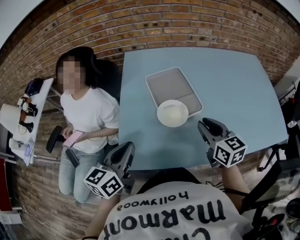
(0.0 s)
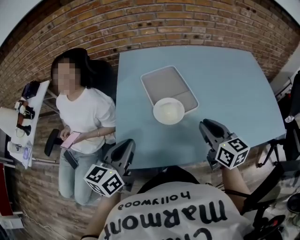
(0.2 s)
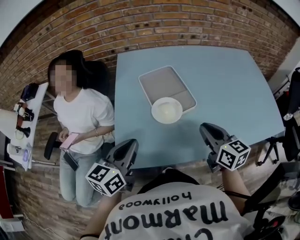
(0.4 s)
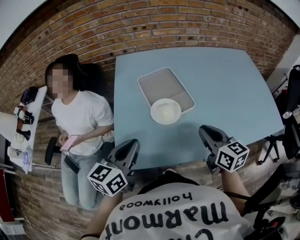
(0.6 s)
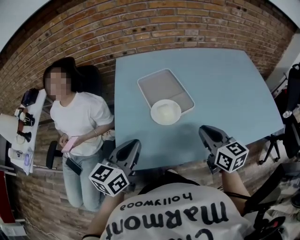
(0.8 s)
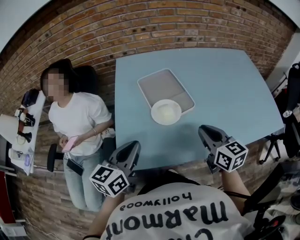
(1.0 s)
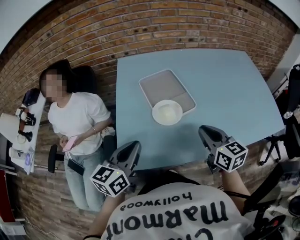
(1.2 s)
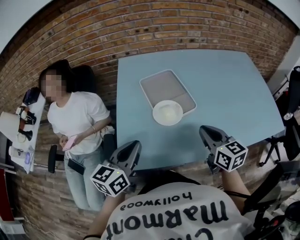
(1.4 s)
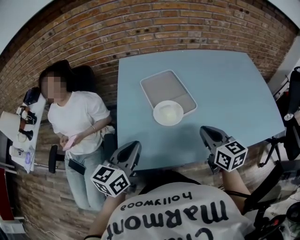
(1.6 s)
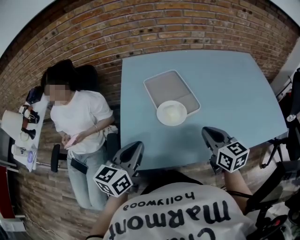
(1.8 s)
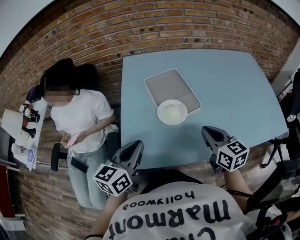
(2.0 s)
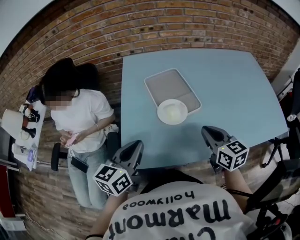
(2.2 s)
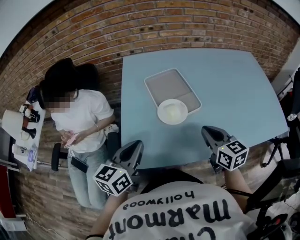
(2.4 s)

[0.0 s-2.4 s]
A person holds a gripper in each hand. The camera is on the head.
0.0 to 1.2 s: The right gripper travels backward by about 5 cm.
1.2 to 2.4 s: There are only small adjustments of the grippers.

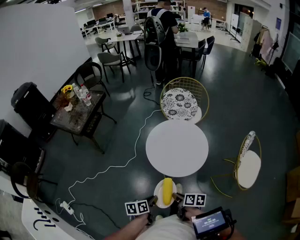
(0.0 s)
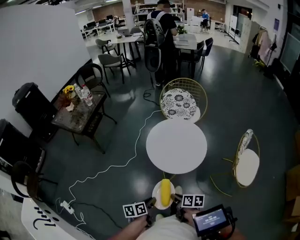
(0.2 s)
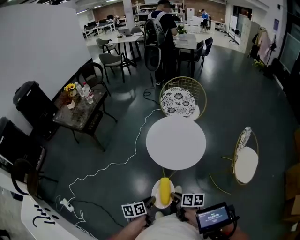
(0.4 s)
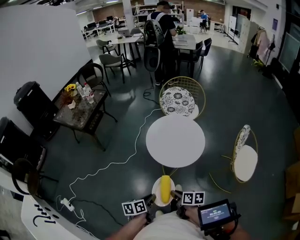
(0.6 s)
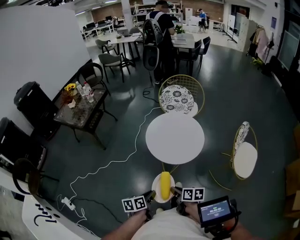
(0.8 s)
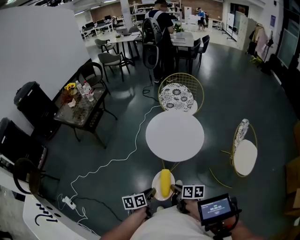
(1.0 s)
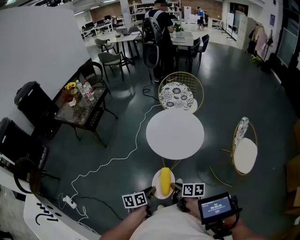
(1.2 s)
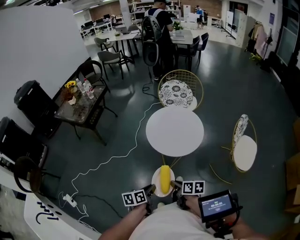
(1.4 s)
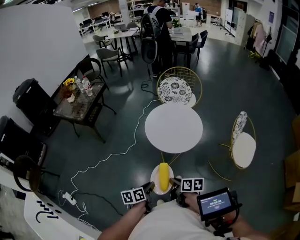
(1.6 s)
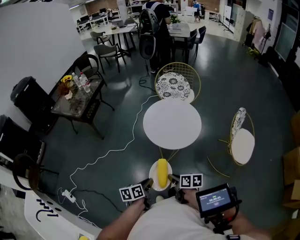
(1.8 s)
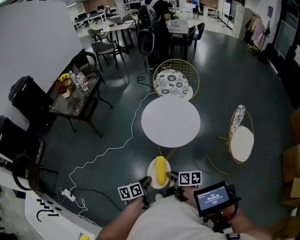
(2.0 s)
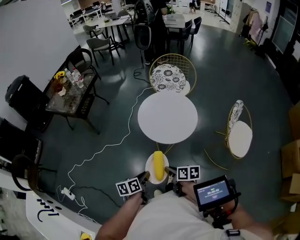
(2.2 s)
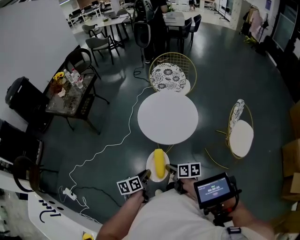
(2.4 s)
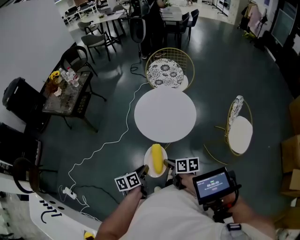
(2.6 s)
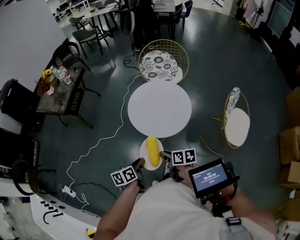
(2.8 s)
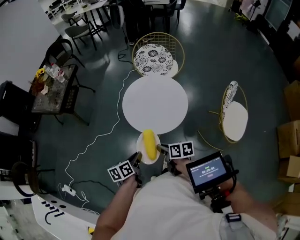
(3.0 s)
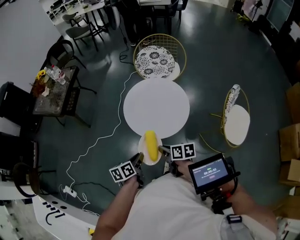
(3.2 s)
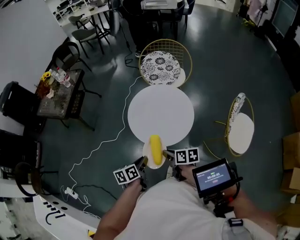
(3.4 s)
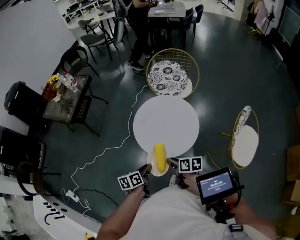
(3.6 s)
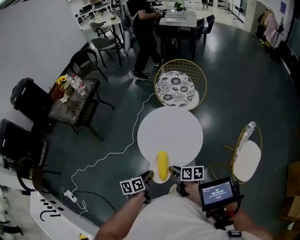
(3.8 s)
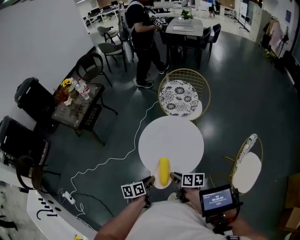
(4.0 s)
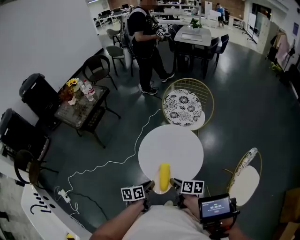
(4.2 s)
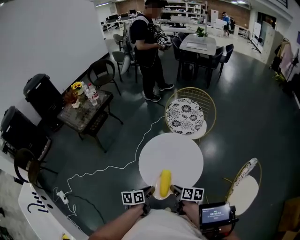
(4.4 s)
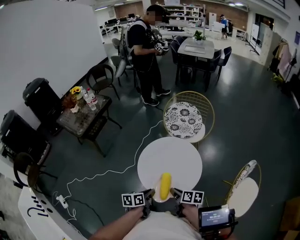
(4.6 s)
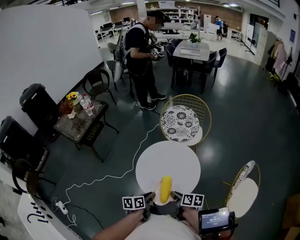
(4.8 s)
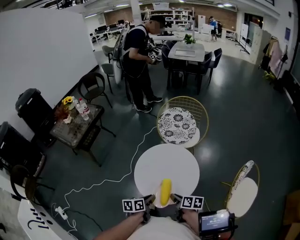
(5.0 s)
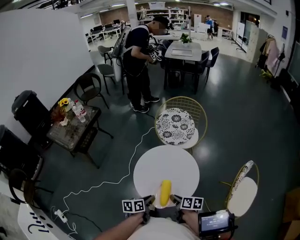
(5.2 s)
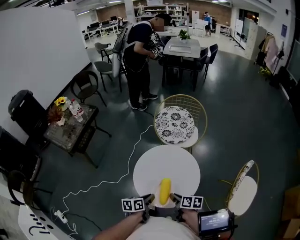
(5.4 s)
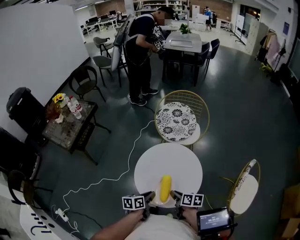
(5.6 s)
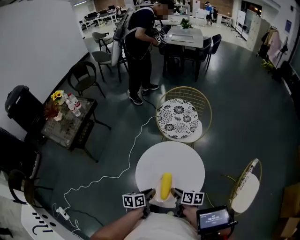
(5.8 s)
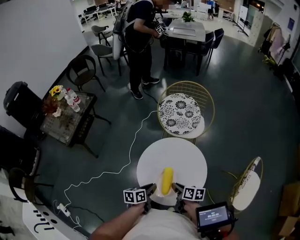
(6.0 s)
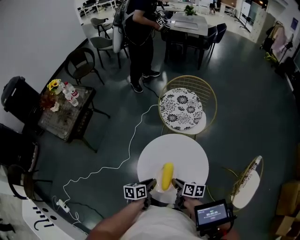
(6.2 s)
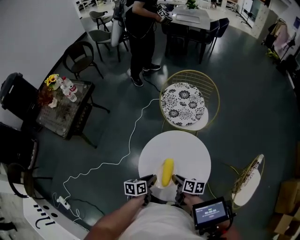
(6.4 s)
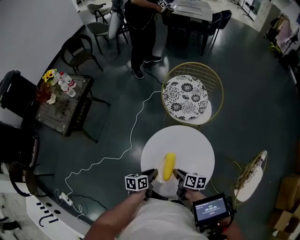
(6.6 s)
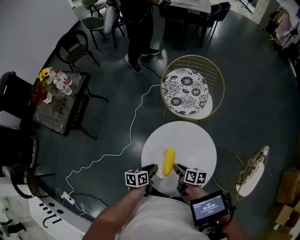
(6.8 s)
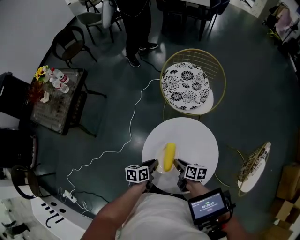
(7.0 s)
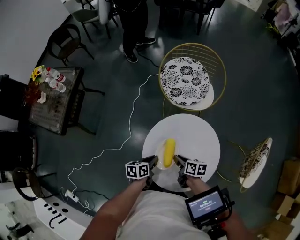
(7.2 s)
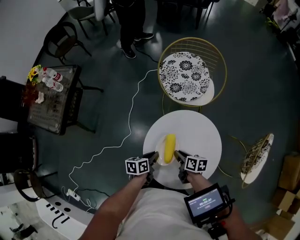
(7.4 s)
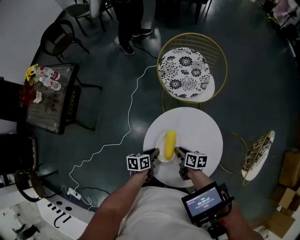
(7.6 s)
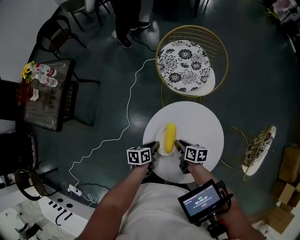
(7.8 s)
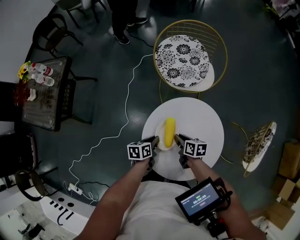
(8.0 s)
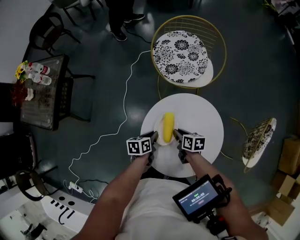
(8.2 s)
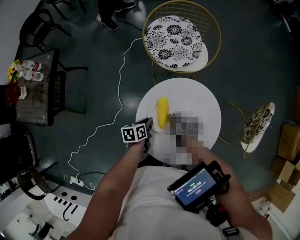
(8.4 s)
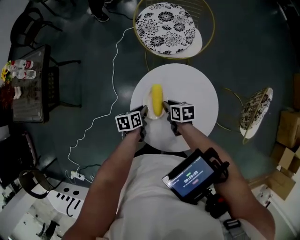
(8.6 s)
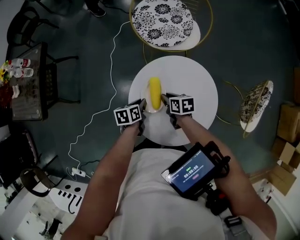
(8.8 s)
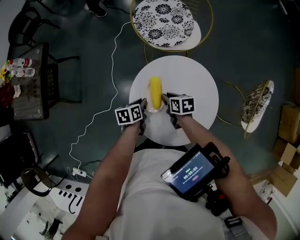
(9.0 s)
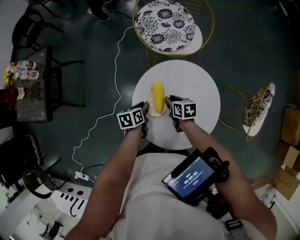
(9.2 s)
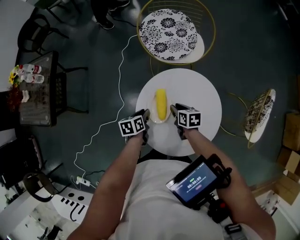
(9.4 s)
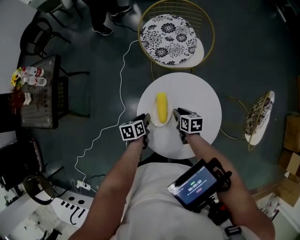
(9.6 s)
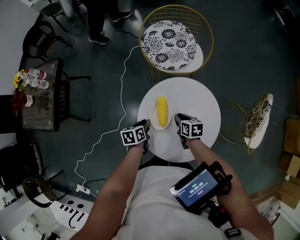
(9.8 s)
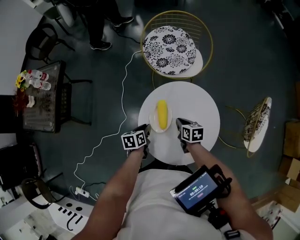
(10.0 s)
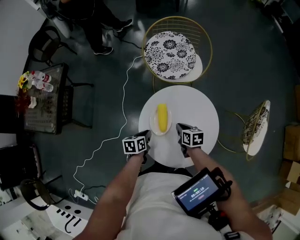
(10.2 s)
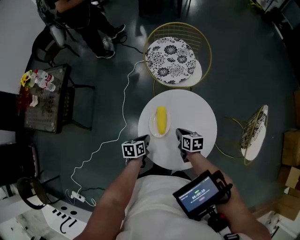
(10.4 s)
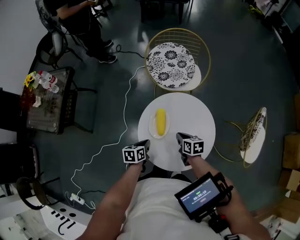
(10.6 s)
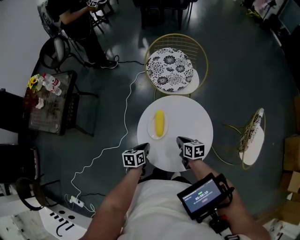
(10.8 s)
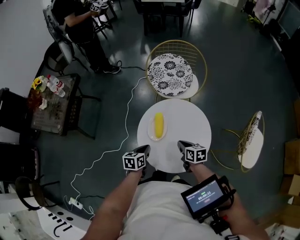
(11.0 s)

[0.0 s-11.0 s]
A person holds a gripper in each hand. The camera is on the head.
0.0 to 1.6 s: The two grippers go about 10 cm backward.
1.6 to 3.2 s: Both grippers move forward and to the right, about 15 cm.
3.2 to 4.8 s: The two grippers go roughly 15 cm forward and to the right.
4.8 to 6.2 s: The two grippers go approximately 15 cm forward and downward.
6.2 to 7.8 s: The two grippers go some 15 cm forward and downward.
7.8 to 9.4 s: The grippers make only small movements.
9.4 to 11.0 s: The two grippers go some 15 cm backward and upward. The right gripper closes its fingers.

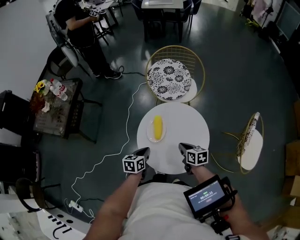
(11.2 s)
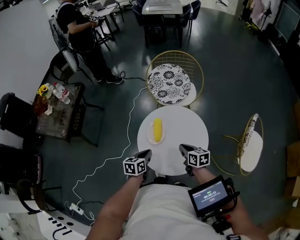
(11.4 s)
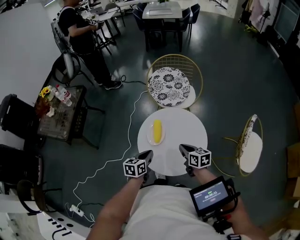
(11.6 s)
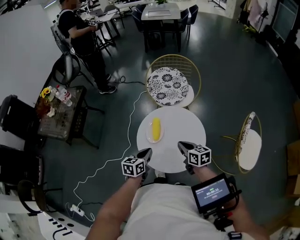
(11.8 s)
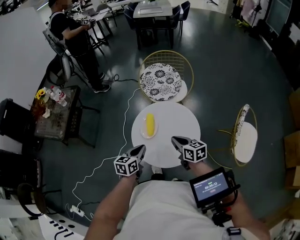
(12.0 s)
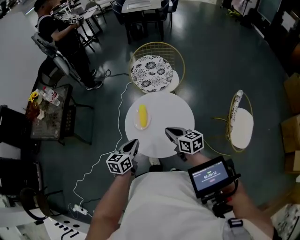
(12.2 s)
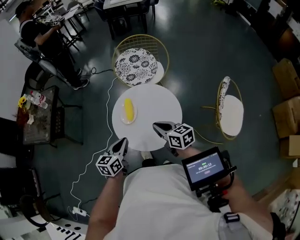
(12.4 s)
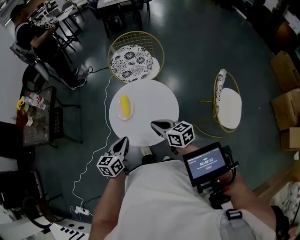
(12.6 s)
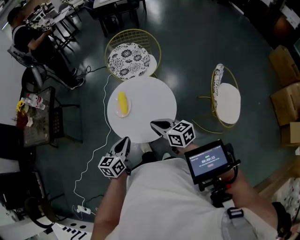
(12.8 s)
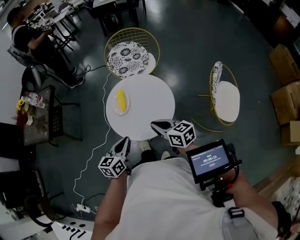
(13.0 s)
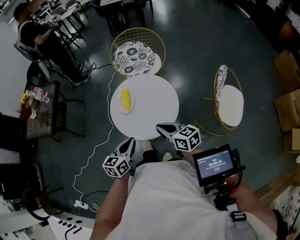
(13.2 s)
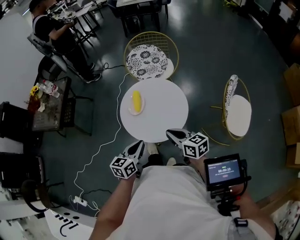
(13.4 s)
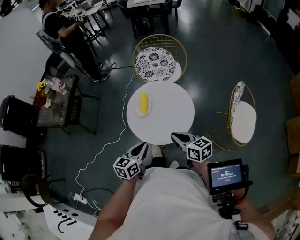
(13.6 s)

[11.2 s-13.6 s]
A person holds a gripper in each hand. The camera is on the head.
11.2 to 12.4 s: Both grippers travel together upward and backward, some 15 cm.
12.4 to 13.6 s: Both grippers travel together backward, about 10 cm.

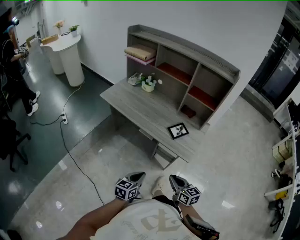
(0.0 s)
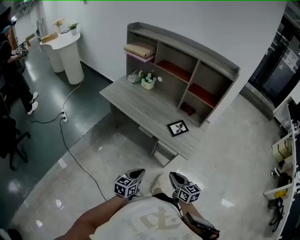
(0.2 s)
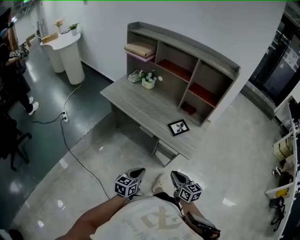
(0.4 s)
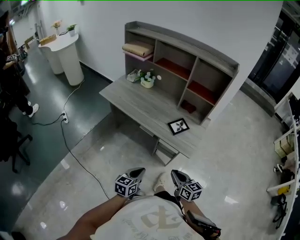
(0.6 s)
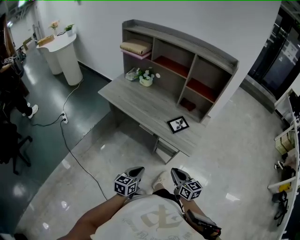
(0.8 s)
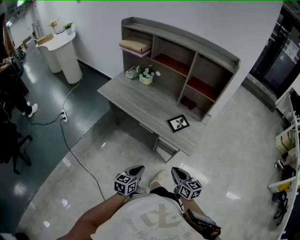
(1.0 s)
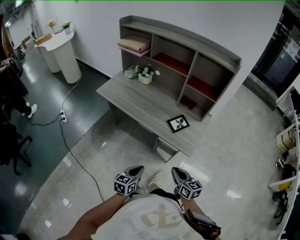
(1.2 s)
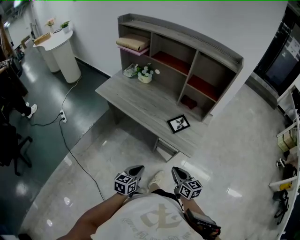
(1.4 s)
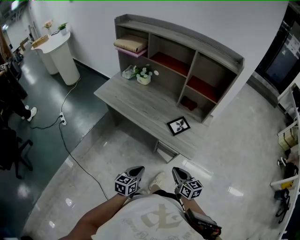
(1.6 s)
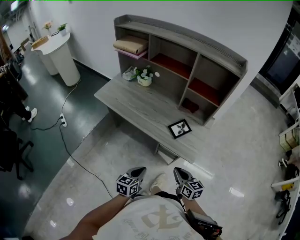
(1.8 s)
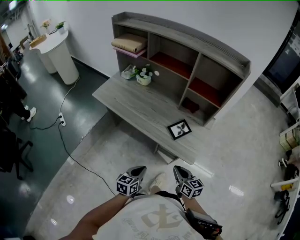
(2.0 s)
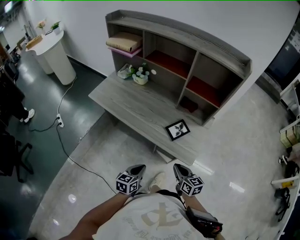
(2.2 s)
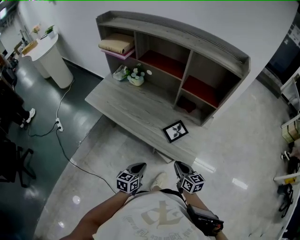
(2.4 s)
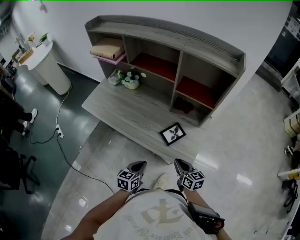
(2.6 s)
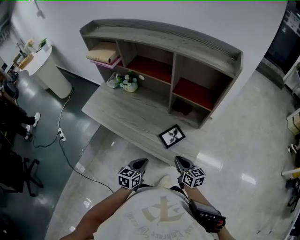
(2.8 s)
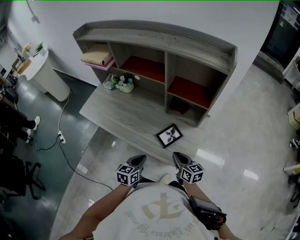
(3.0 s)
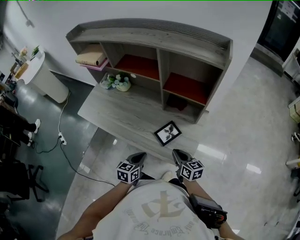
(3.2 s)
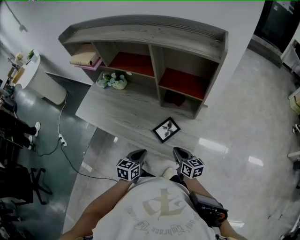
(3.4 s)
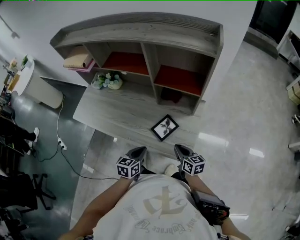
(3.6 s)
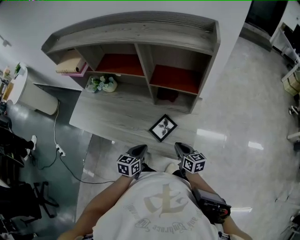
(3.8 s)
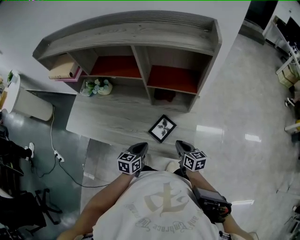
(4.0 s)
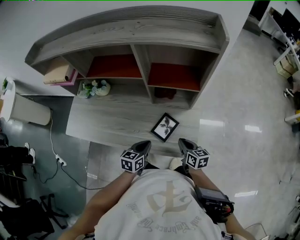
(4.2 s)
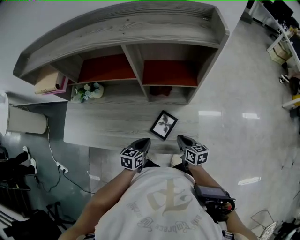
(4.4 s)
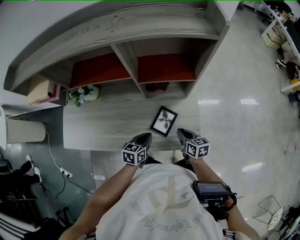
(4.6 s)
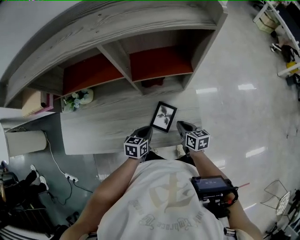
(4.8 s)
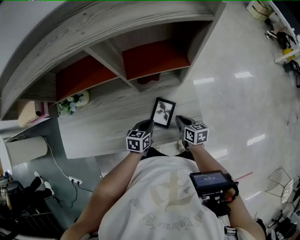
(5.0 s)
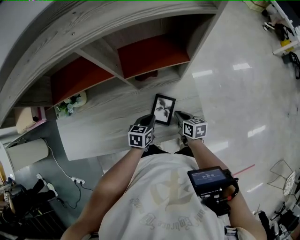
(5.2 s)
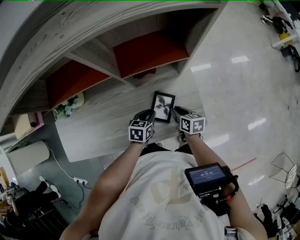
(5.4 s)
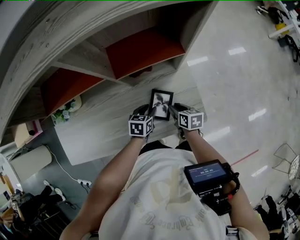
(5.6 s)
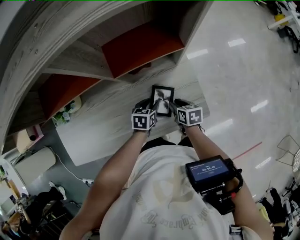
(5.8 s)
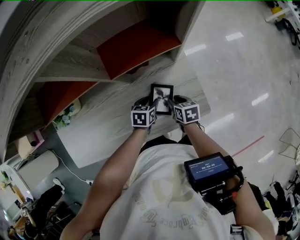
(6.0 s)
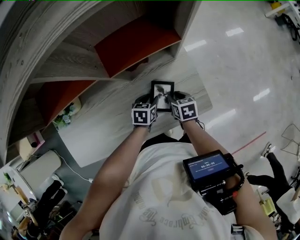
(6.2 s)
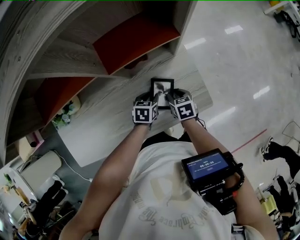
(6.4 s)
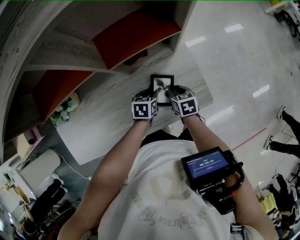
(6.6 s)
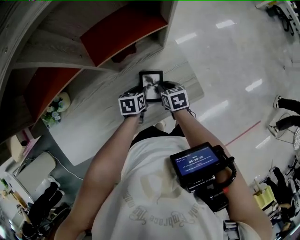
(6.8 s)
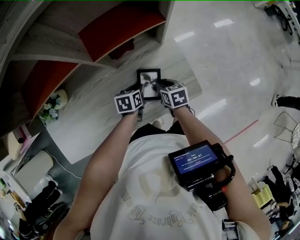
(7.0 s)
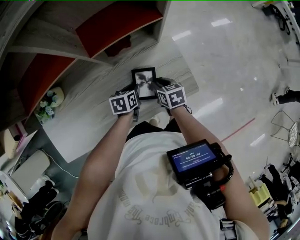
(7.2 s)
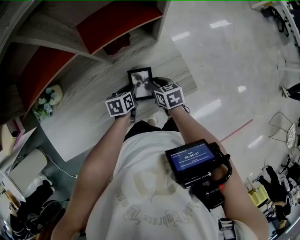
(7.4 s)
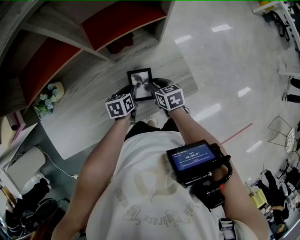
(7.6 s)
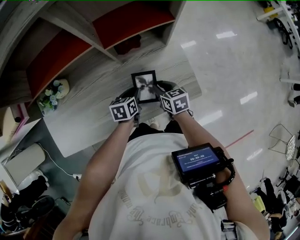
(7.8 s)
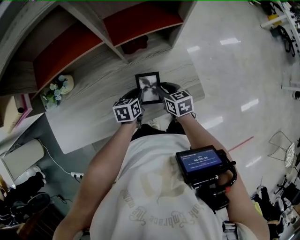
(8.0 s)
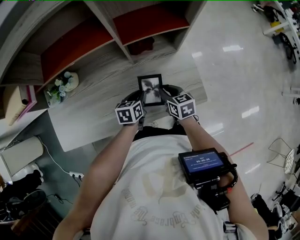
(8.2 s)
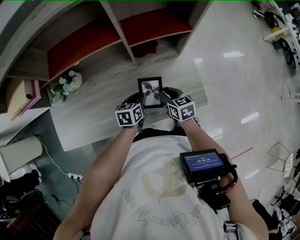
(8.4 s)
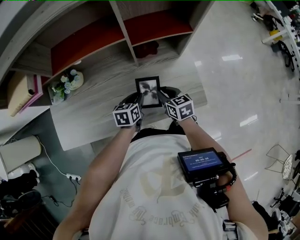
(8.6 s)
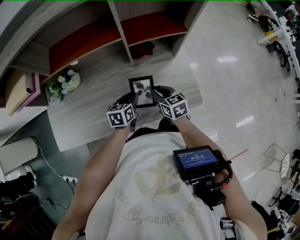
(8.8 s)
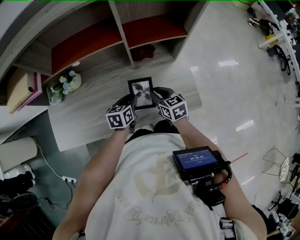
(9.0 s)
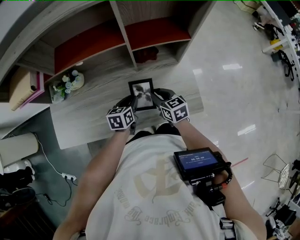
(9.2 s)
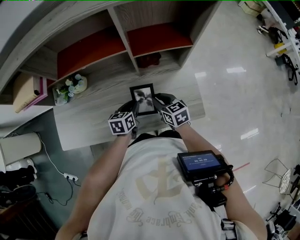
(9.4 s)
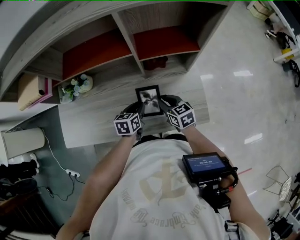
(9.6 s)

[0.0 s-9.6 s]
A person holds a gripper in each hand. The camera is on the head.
0.0 to 1.6 s: Both grippers travel together forward, about 10 cm.
1.6 to 3.2 s: The right gripper moves forward, about 20 cm. The left gripper shifts about 25 cm forward and to the right.
3.2 to 4.8 s: The right gripper shifts approximately 10 cm downward, and turns by approximately 30 degrees. Meanwhile the left gripper changes place by roughly 20 cm, and changes its angle by some 30 degrees.
4.8 to 6.4 s: The right gripper is displaced downward by some 10 cm, rotates roughly 30 degrees, and opens its fingers, while the left gripper heads downward and forward, covering about 10 cm, rotates some 20 degrees, and opens up.
6.4 to 8.0 s: The right gripper is displaced to the left and upward by about 10 cm; the left gripper goes roughly 5 cm to the left, and rotates approximately 20 degrees.
8.0 to 9.6 s: The two grippers go approximately 5 cm upward.
